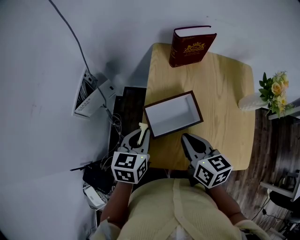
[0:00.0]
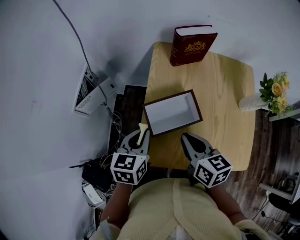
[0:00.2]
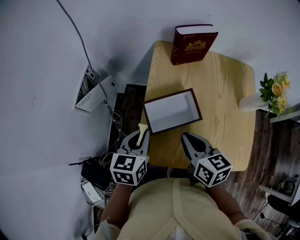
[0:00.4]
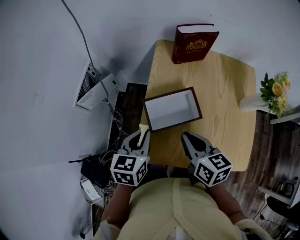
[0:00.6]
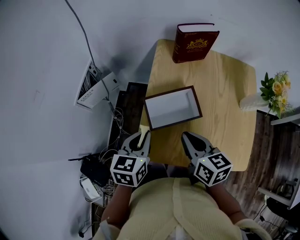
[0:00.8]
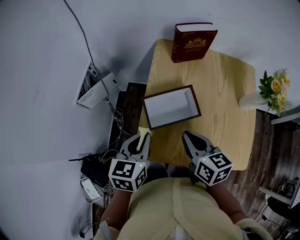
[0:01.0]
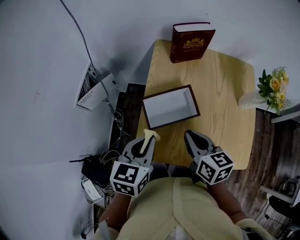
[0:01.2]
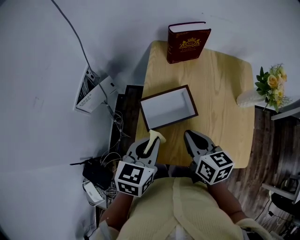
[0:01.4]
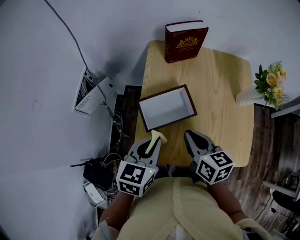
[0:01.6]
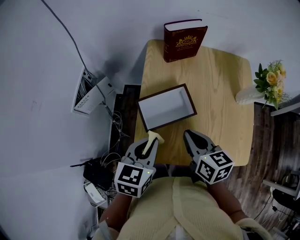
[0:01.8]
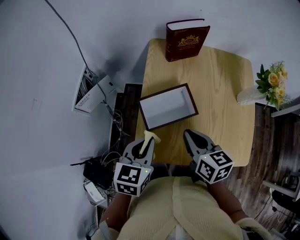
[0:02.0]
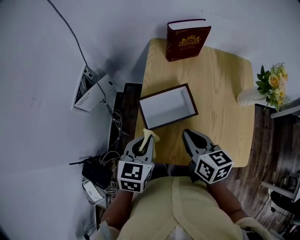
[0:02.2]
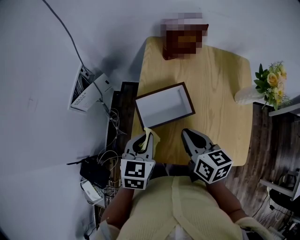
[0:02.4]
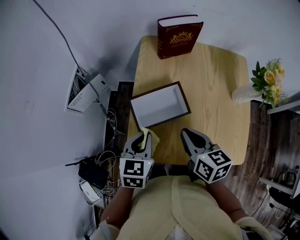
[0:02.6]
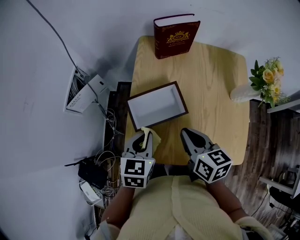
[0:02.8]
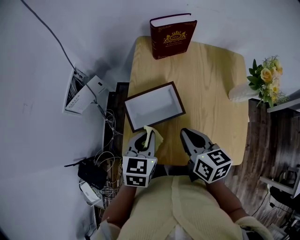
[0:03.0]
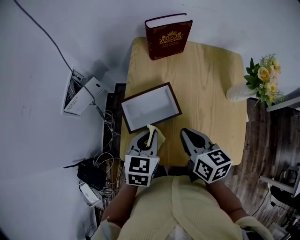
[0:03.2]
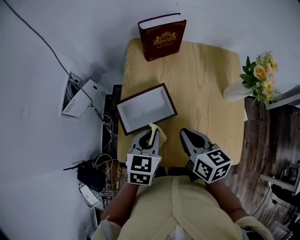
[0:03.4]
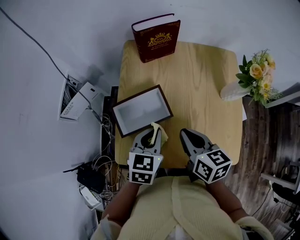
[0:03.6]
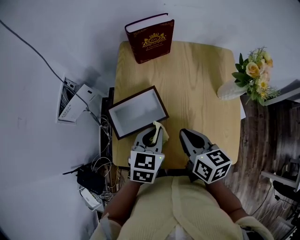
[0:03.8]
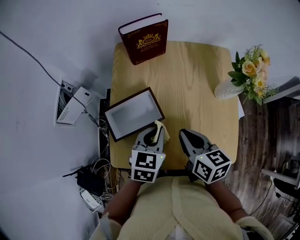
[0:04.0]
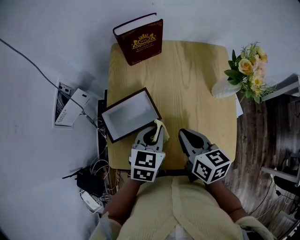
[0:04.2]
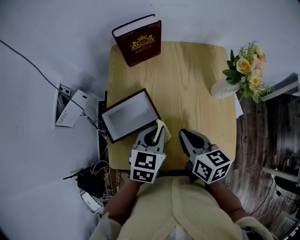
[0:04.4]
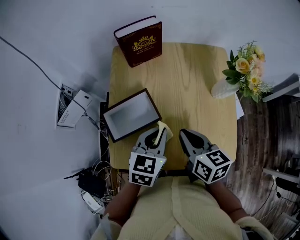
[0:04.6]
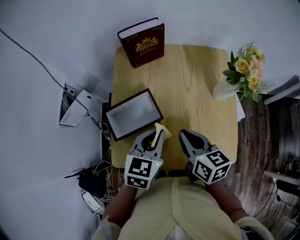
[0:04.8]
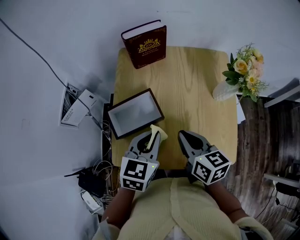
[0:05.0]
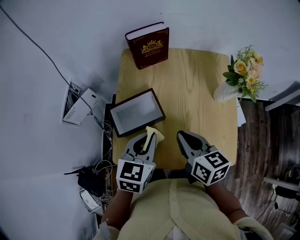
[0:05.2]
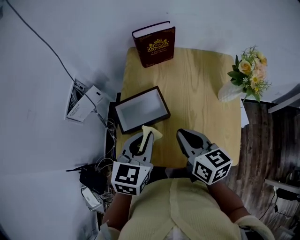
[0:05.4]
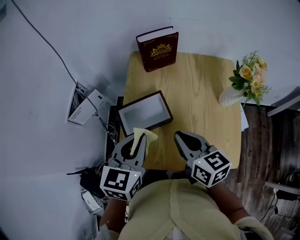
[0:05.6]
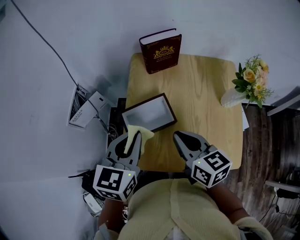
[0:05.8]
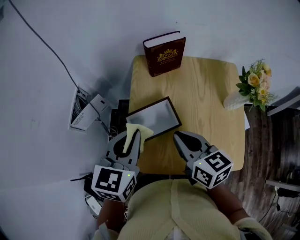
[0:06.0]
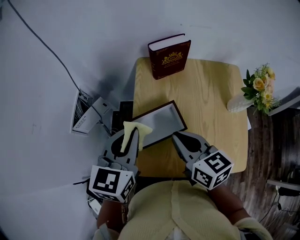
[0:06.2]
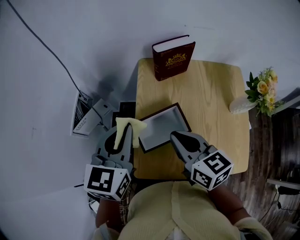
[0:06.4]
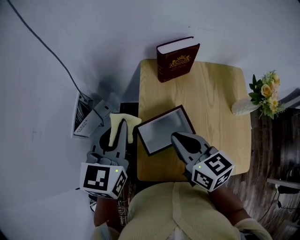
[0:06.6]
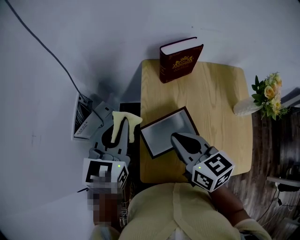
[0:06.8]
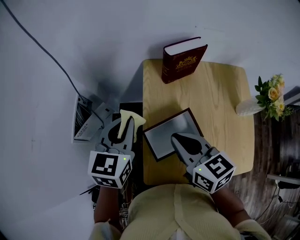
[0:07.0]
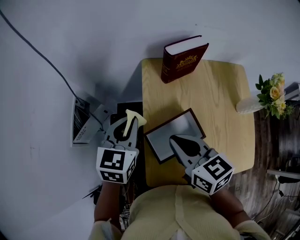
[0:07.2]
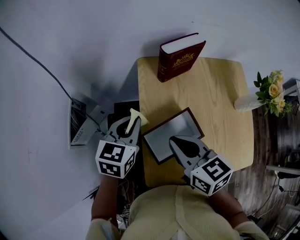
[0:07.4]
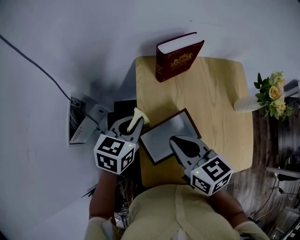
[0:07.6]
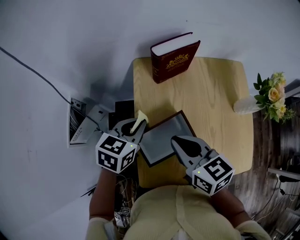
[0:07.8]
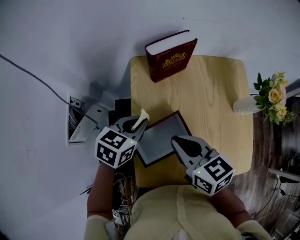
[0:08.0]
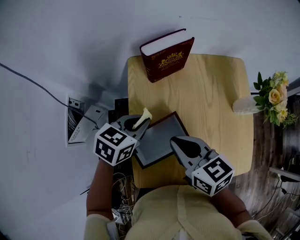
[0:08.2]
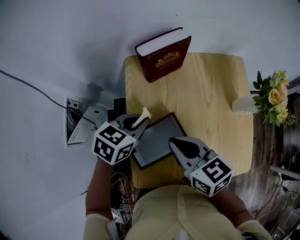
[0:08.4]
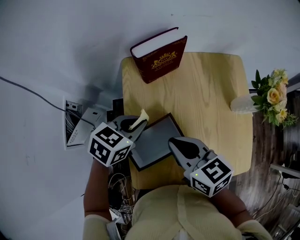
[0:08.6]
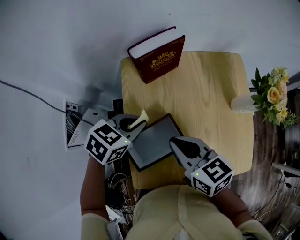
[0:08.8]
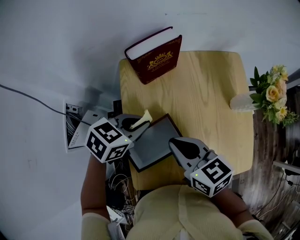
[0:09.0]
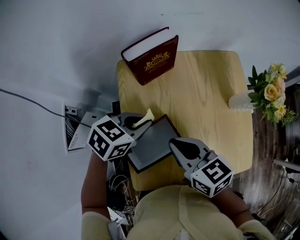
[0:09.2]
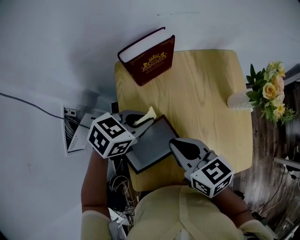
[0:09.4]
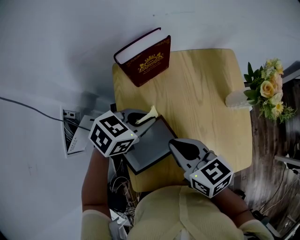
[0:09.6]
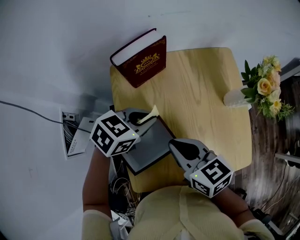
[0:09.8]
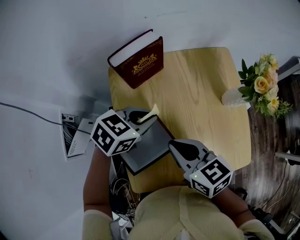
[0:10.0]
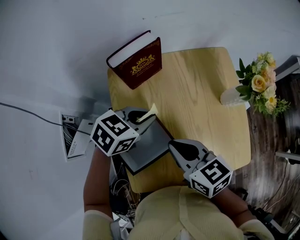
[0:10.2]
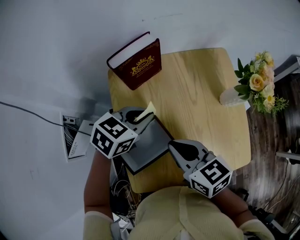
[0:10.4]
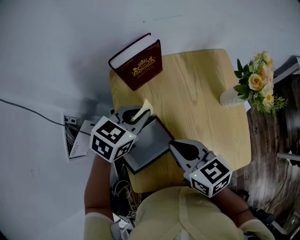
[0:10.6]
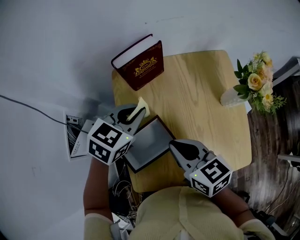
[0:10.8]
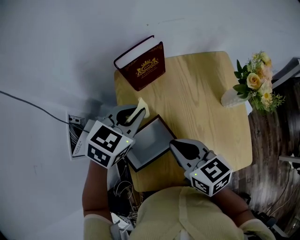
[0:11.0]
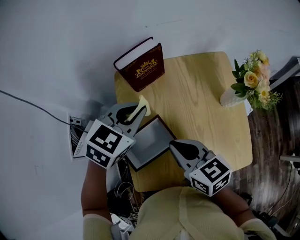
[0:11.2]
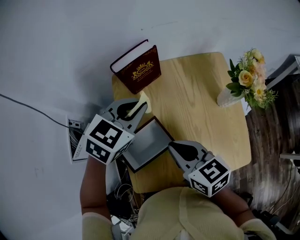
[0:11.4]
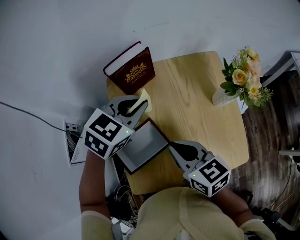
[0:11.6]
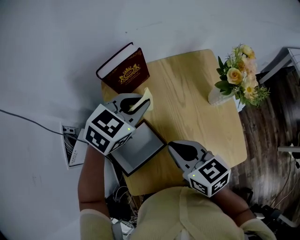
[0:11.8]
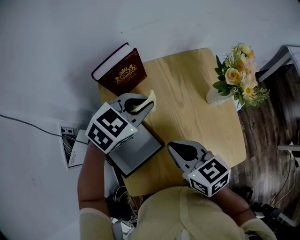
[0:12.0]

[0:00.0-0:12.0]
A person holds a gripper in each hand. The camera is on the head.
0:00.0 to 0:01.6: The left gripper moves to the right and backward, roughly 10 cm.
0:01.6 to 0:03.0: The left gripper travels downward by about 5 cm.
0:03.0 to 0:04.4: The right gripper shifts approximately 10 cm to the right, while the left gripper moves to the right, some 10 cm.
0:04.4 to 0:06.0: The left gripper goes about 20 cm upward and to the left. The right gripper heads to the left and upward, covering about 15 cm.
0:06.0 to 0:07.6: The right gripper travels to the left and forward by approximately 10 cm, while the left gripper travels forward and downward by roughly 15 cm, and turns by about 20 degrees.
0:07.6 to 0:09.0: The left gripper is displaced to the right by about 10 cm, and changes its angle by about 30 degrees, while the right gripper travels to the right by roughly 5 cm.
0:09.0 to 0:10.4: The left gripper goes roughly 5 cm to the right.
0:10.4 to 0:12.0: The left gripper is displaced to the right and upward by roughly 10 cm, and rotates some 20 degrees.

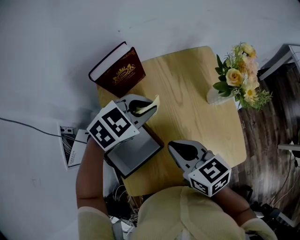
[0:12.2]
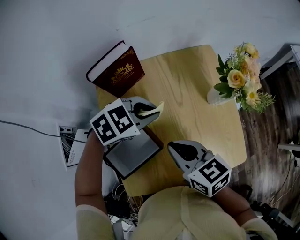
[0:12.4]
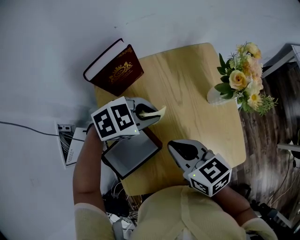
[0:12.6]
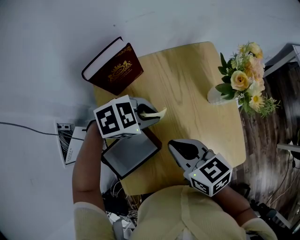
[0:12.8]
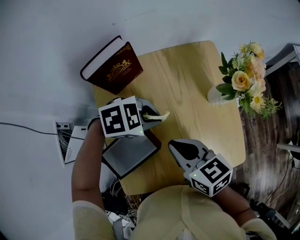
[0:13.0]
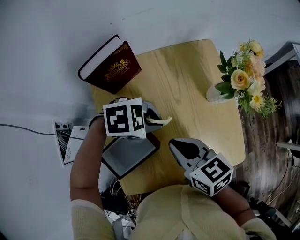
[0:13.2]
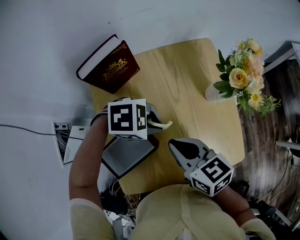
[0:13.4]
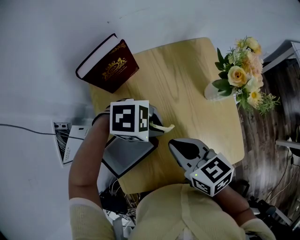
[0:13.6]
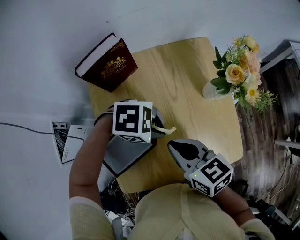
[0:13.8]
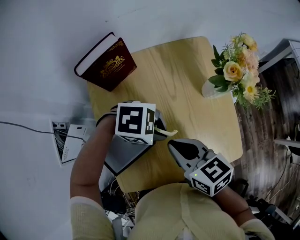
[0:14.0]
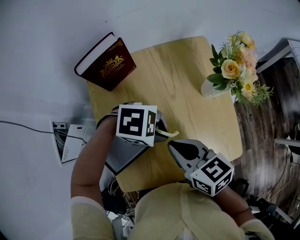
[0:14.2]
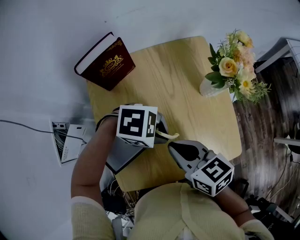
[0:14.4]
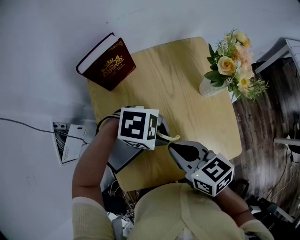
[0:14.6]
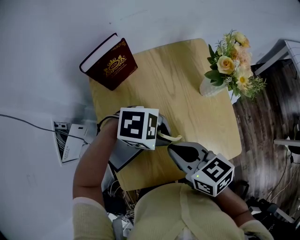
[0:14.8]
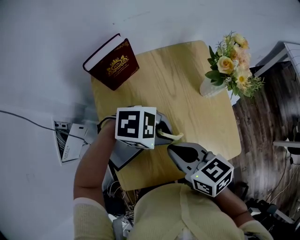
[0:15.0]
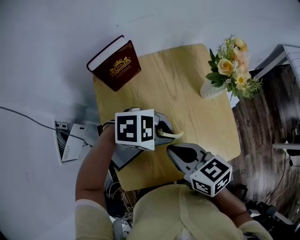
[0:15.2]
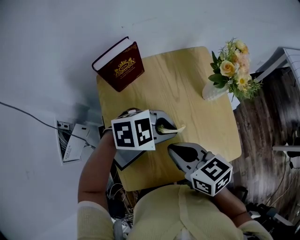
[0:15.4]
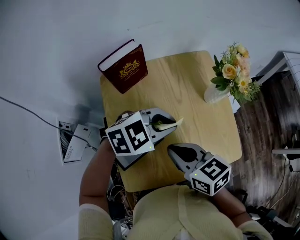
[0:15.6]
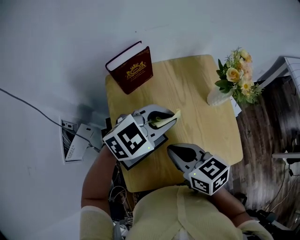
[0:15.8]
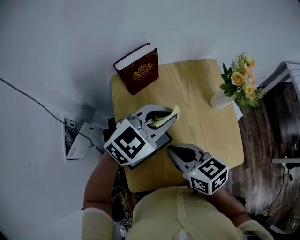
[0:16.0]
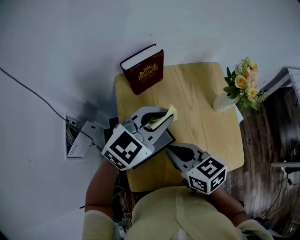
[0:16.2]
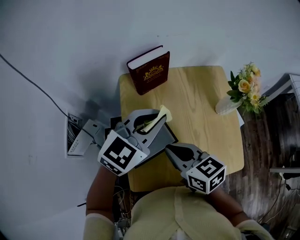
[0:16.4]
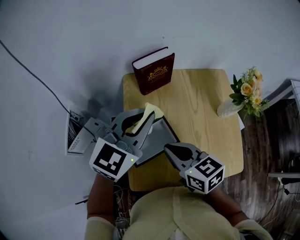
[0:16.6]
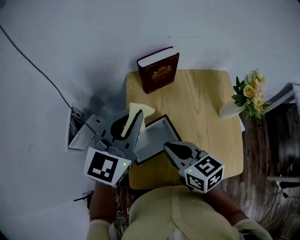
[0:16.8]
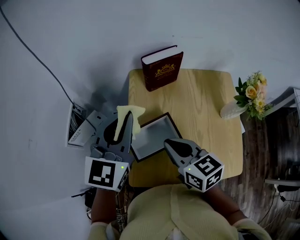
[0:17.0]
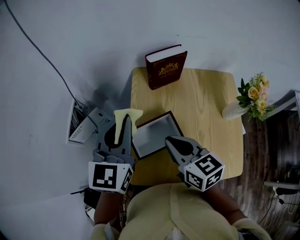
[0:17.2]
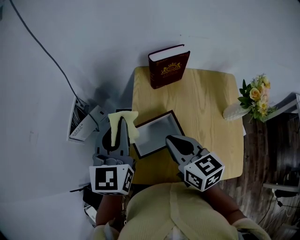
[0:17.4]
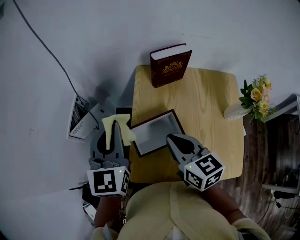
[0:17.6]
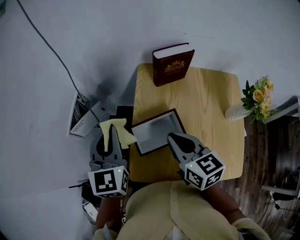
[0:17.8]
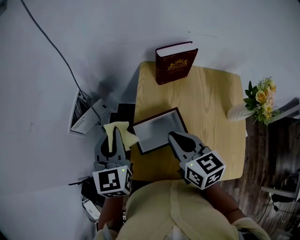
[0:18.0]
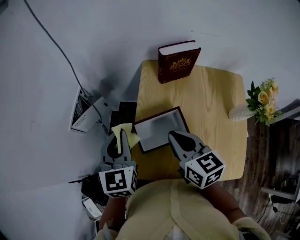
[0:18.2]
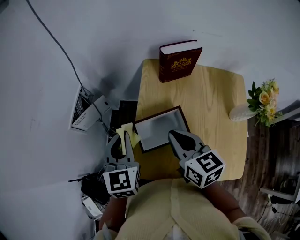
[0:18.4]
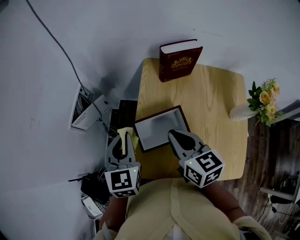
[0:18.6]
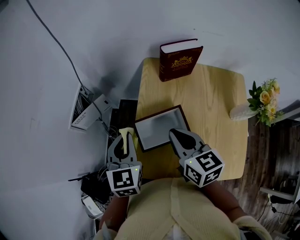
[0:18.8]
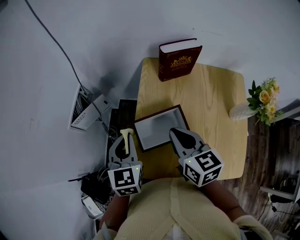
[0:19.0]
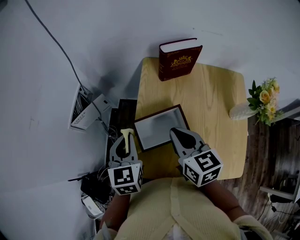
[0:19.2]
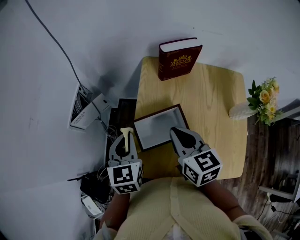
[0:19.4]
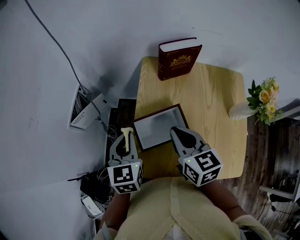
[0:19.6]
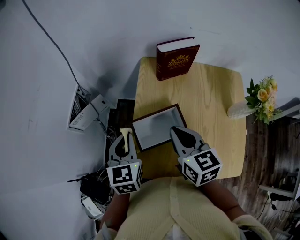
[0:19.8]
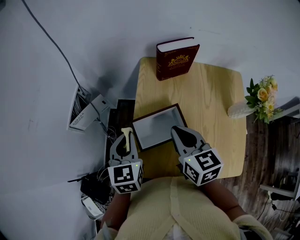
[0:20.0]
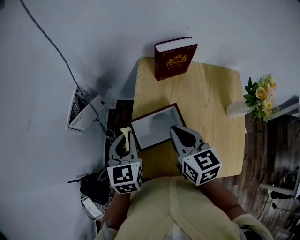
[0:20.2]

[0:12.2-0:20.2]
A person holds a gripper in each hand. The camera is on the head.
0:12.2 to 0:13.8: The left gripper changes place by roughly 15 cm, and swivels approximately 50 degrees.
0:13.8 to 0:15.4: The left gripper travels upward by some 5 cm, and turns by approximately 20 degrees.
0:15.4 to 0:17.0: The right gripper changes place by about 10 cm, while the left gripper changes place by some 30 cm, and tips its fingers upward by roughly 40 degrees.
0:17.0 to 0:18.6: The left gripper moves downward and to the left, roughly 15 cm, and turns by roughly 30 degrees.
0:18.6 to 0:20.2: The grippers stay close to where they were, moving slightly.

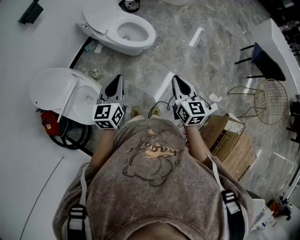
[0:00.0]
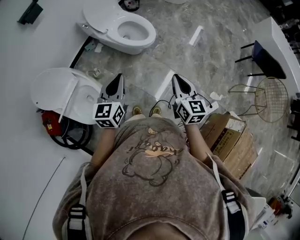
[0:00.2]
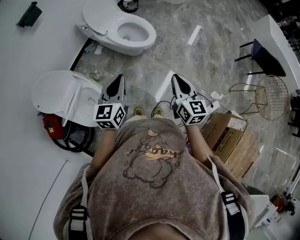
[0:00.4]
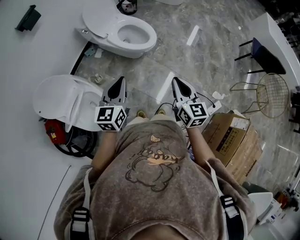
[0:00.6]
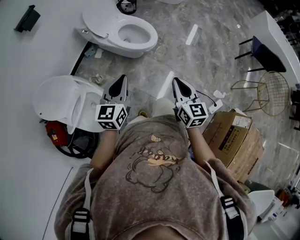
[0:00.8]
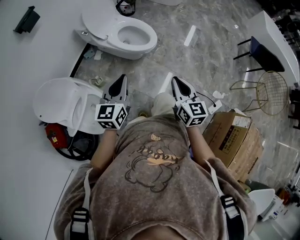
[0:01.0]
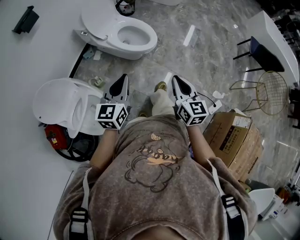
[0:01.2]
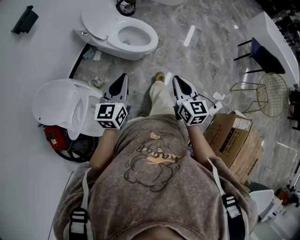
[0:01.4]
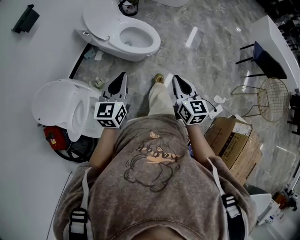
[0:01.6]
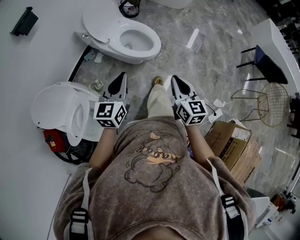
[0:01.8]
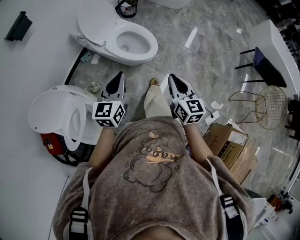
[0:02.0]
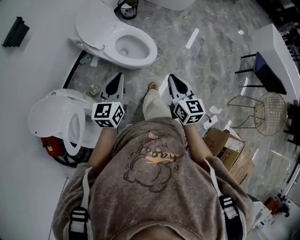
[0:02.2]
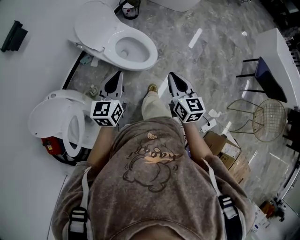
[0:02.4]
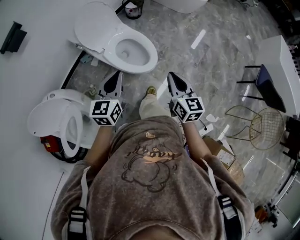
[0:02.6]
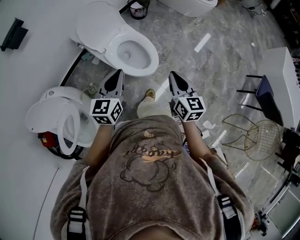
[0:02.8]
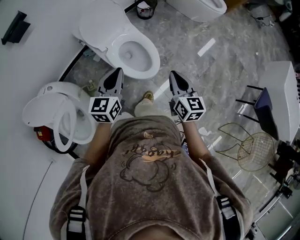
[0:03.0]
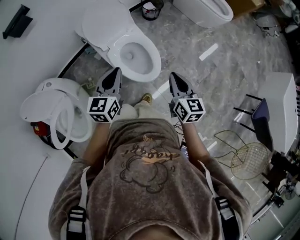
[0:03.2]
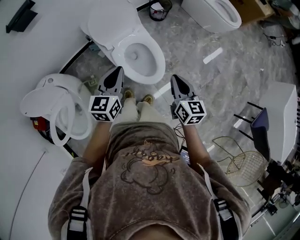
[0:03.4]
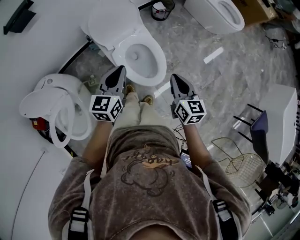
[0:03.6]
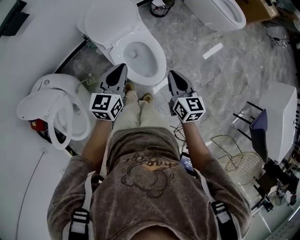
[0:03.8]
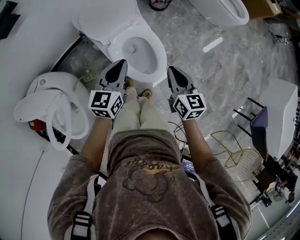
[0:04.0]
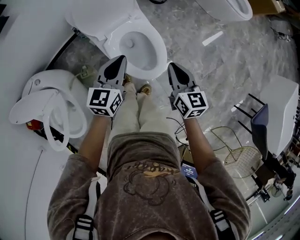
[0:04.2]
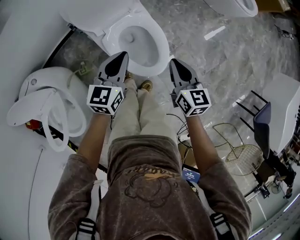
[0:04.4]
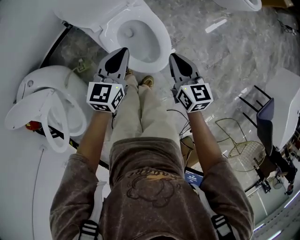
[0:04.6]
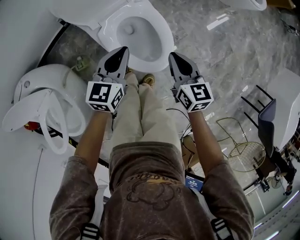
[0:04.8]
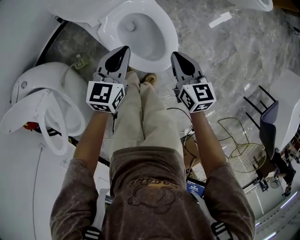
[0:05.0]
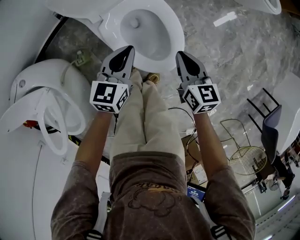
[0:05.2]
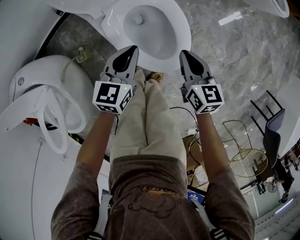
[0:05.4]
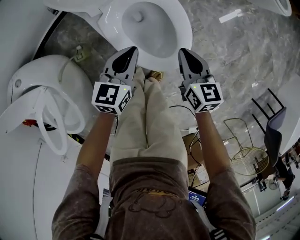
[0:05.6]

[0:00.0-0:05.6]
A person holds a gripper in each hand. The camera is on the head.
0:00.0 to 0:01.4: The left gripper shifts roughly 5 cm forward. The right gripper moves to the left, approximately 5 cm.
0:01.4 to 0:02.8: Both grippers move forward, some 30 cm.
0:02.8 to 0:04.2: Both grippers travel together forward and downward, approximately 20 cm.
0:04.2 to 0:05.6: The grippers both shift downward by roughly 20 cm.
